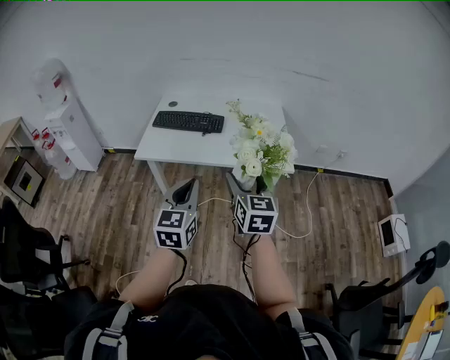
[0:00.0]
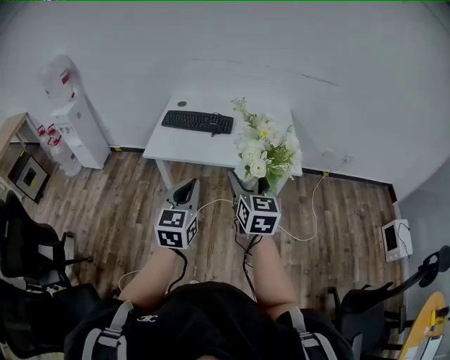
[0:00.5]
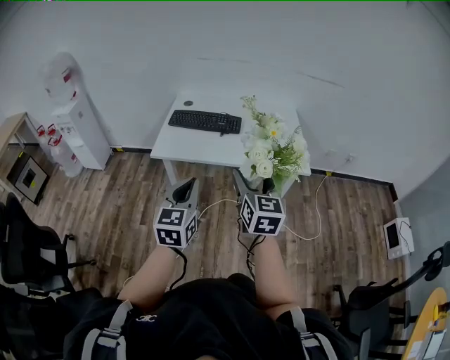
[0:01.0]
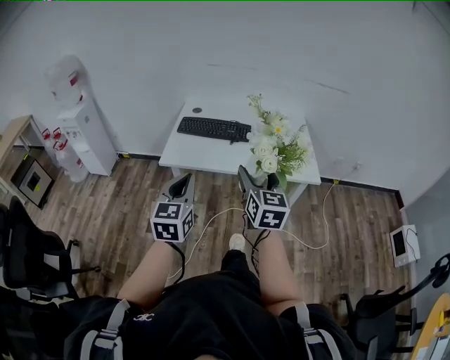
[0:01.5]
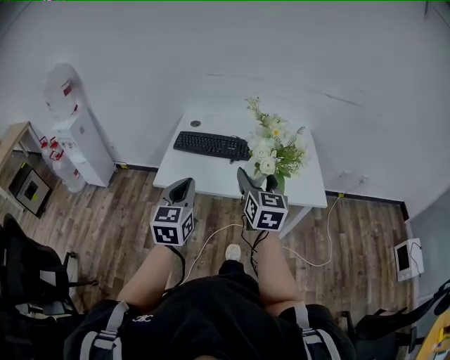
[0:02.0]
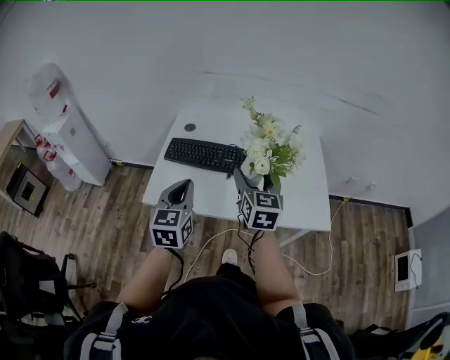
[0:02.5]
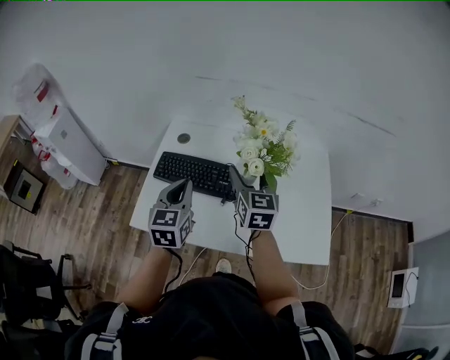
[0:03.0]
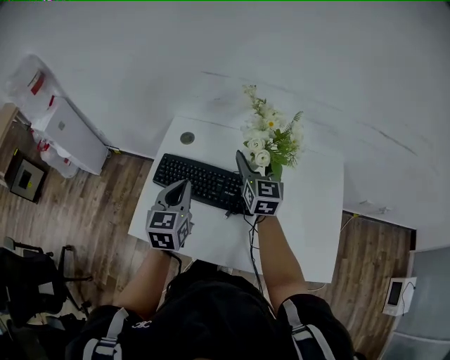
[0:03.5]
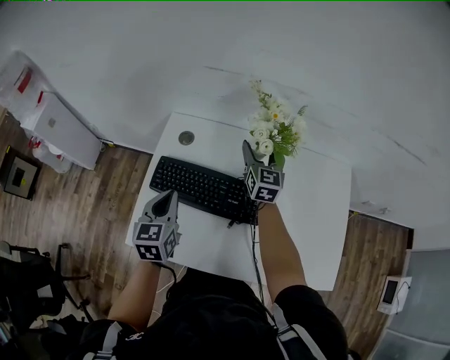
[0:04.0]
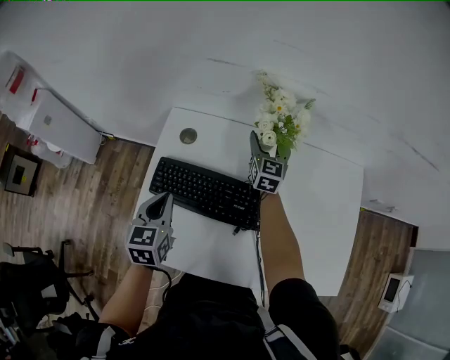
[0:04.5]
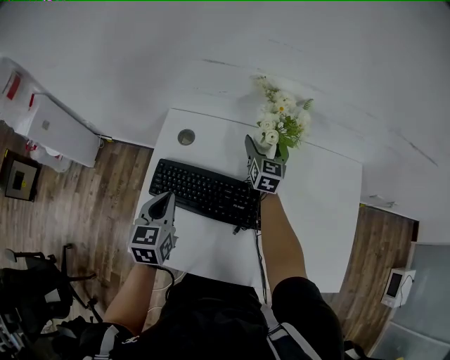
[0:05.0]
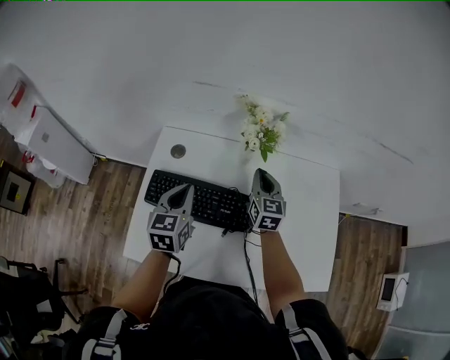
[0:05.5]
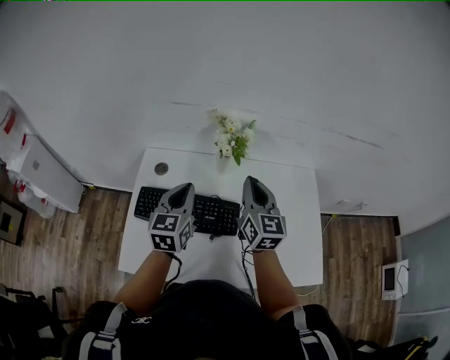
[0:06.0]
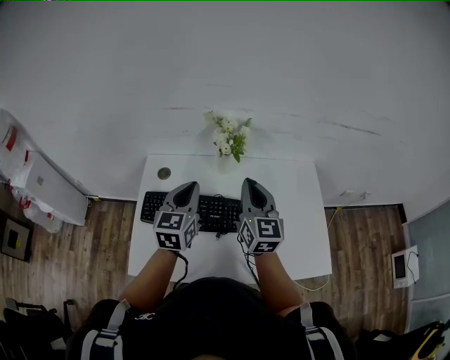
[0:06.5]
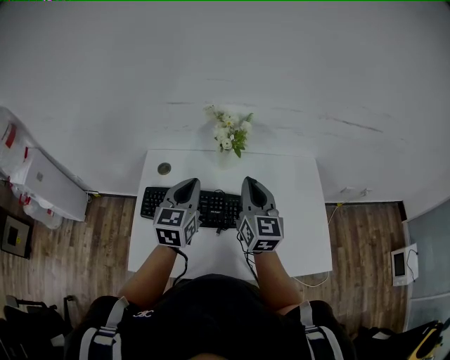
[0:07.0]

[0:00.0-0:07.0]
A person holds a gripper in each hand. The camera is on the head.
0:00.0 to 0:02.0: The two grippers go about 25 cm forward and to the left.
0:02.0 to 0:03.5: The pair of grippers is taken forward, approximately 50 cm.
0:03.5 to 0:05.0: The left gripper heads downward, forward and to the left, covering some 15 cm; the right gripper travels forward and downward by approximately 25 cm.
0:05.0 to 0:07.0: The left gripper is displaced upward and to the right by some 20 cm, and swivels about 20 degrees, while the right gripper shifts some 35 cm backward and upward, and closes.

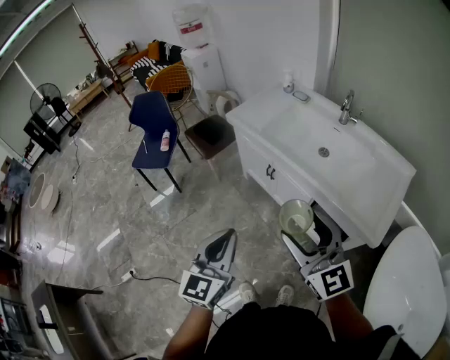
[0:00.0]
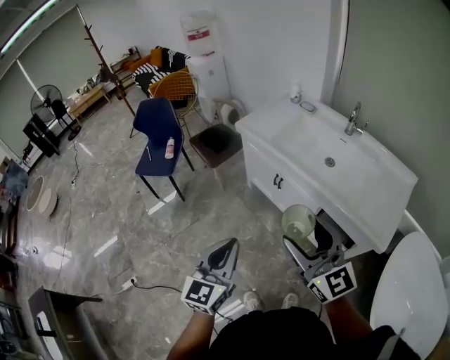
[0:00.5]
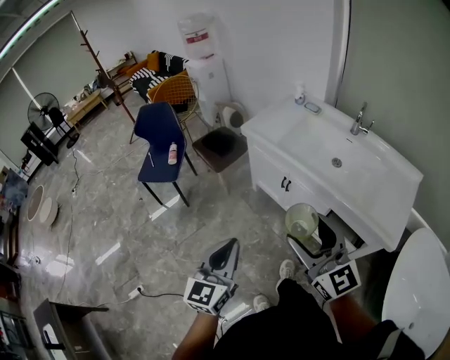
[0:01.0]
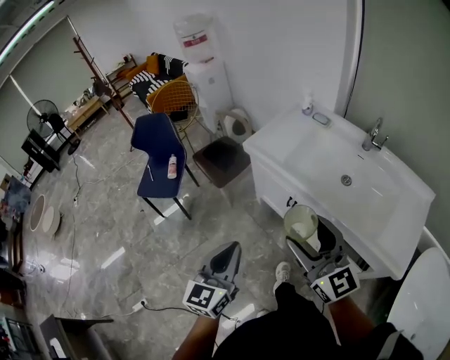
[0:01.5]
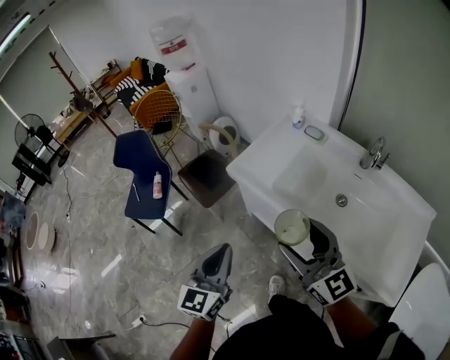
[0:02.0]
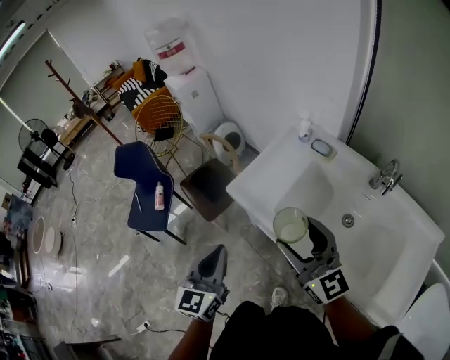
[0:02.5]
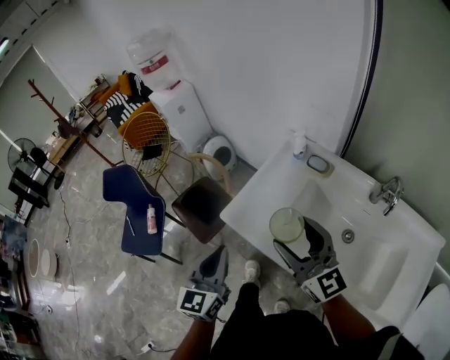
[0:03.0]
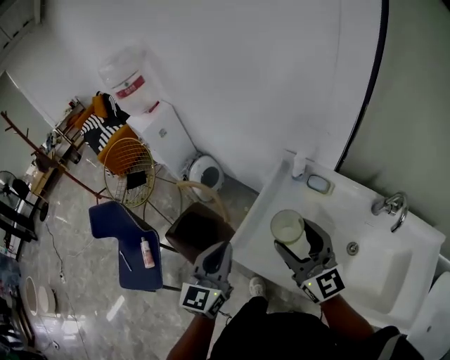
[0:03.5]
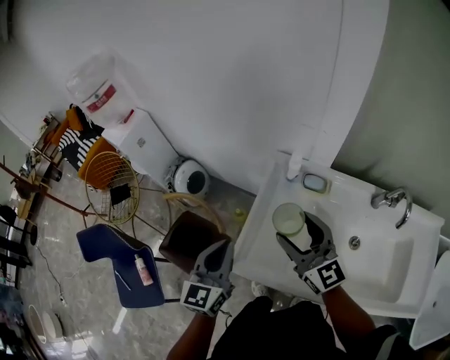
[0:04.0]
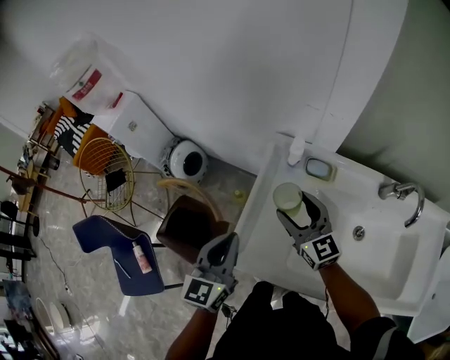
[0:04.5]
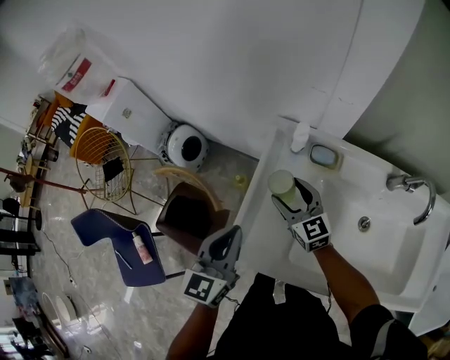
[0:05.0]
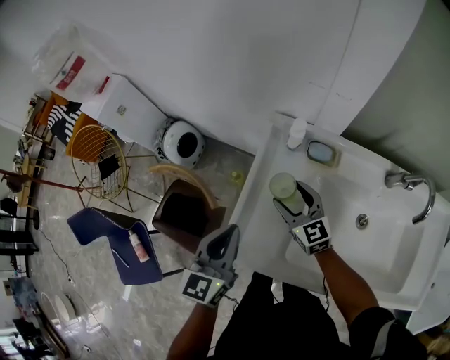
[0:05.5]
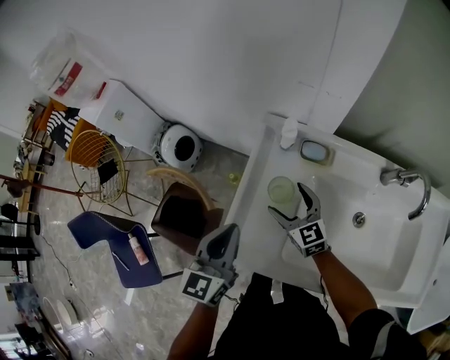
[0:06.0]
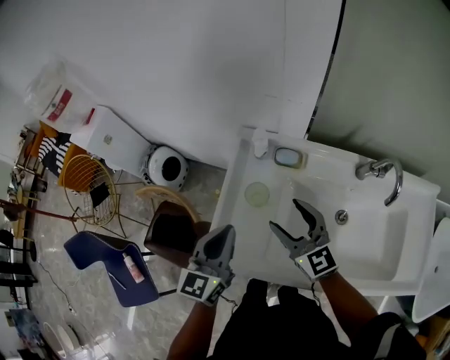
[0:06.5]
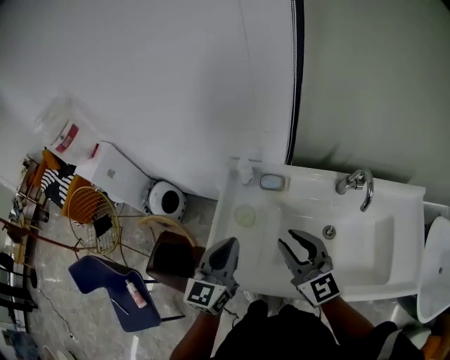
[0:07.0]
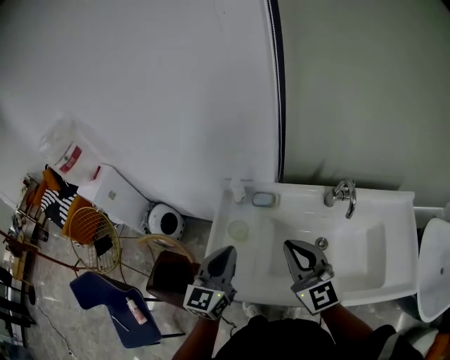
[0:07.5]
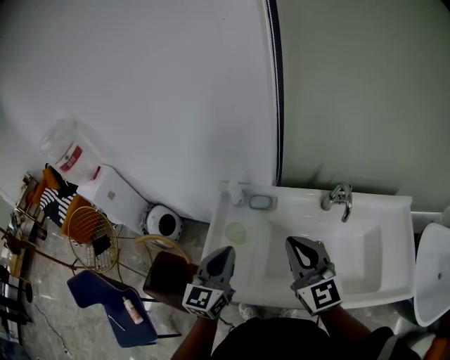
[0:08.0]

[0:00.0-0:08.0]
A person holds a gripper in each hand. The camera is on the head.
0:00.0 to 0:02.0: The grippers both shift forward by approximately 30 cm.
0:02.0 to 0:04.0: The pair of grippers is taken forward, roughly 40 cm. The right gripper turns by some 20 degrees.
0:04.0 to 0:06.0: The right gripper goes roughly 20 cm downward, and turns by about 20 degrees. Meanwhile the left gripper travels to the right and downward by about 10 cm.
0:06.0 to 0:08.0: The right gripper moves upward, to the right and backward, some 35 cm, changes its angle by some 30 degrees, and closes up. The left gripper shifts some 15 cm to the right and upward.

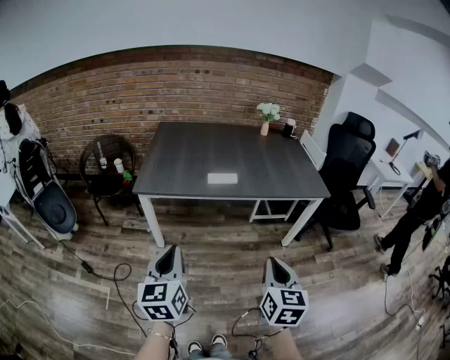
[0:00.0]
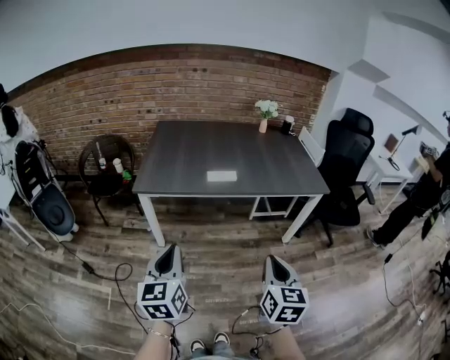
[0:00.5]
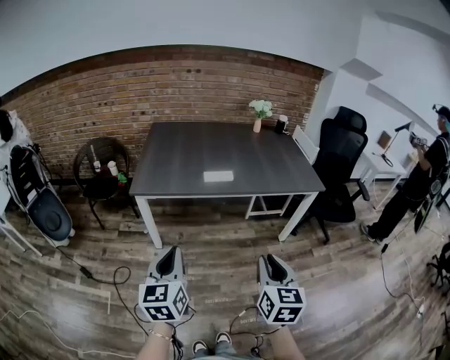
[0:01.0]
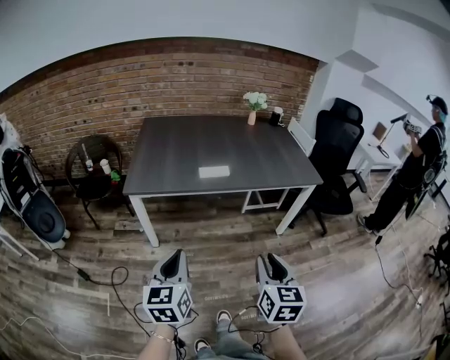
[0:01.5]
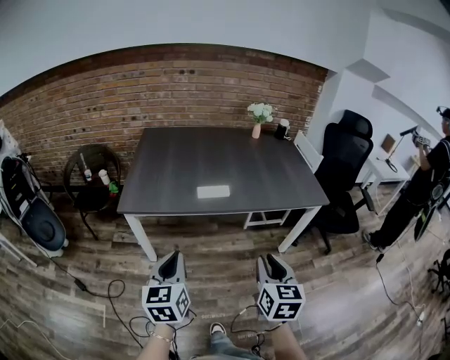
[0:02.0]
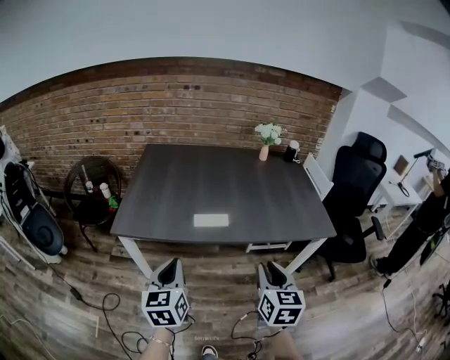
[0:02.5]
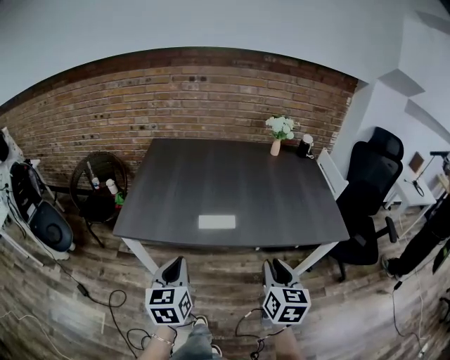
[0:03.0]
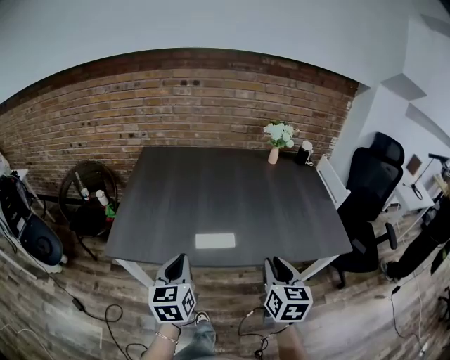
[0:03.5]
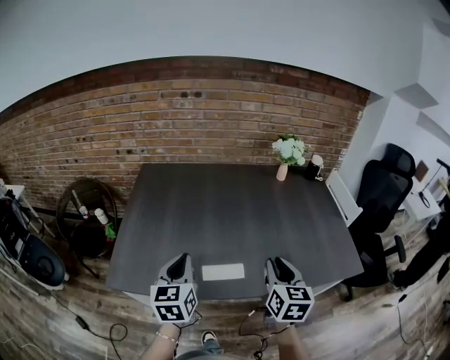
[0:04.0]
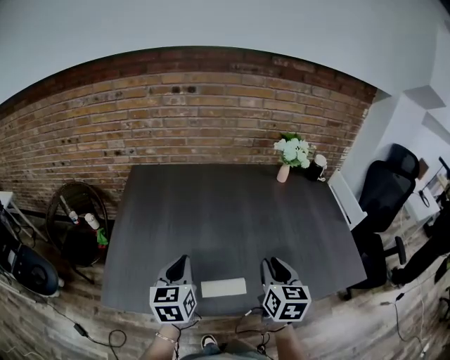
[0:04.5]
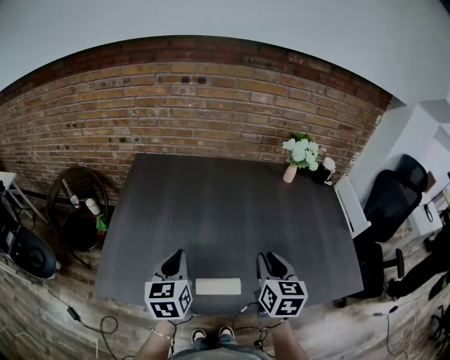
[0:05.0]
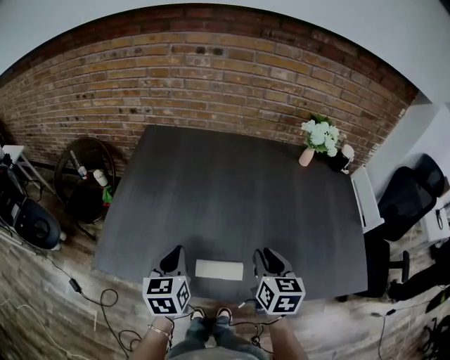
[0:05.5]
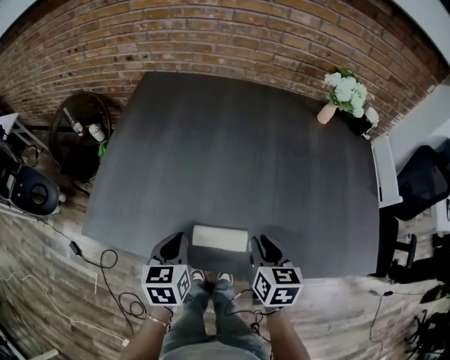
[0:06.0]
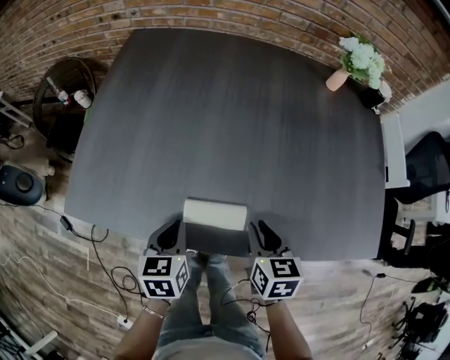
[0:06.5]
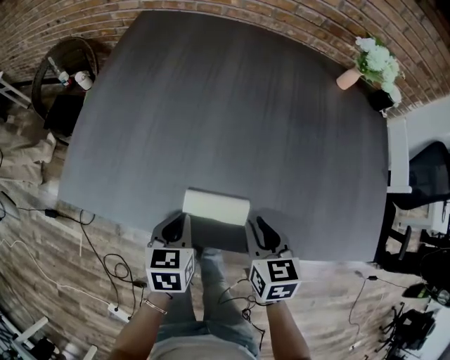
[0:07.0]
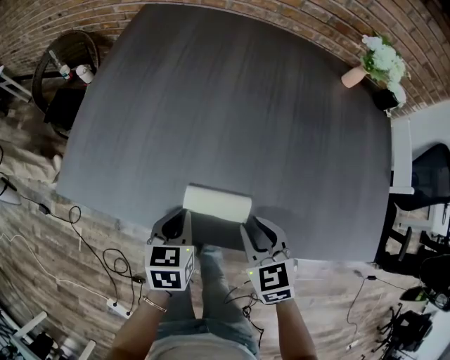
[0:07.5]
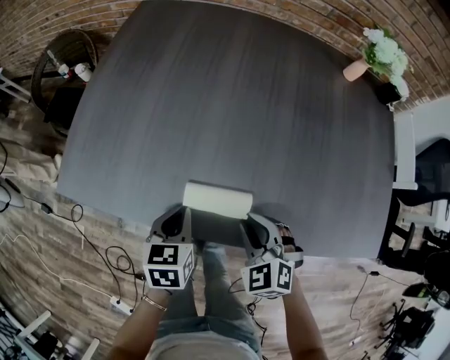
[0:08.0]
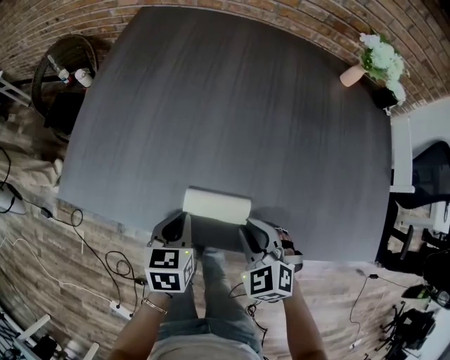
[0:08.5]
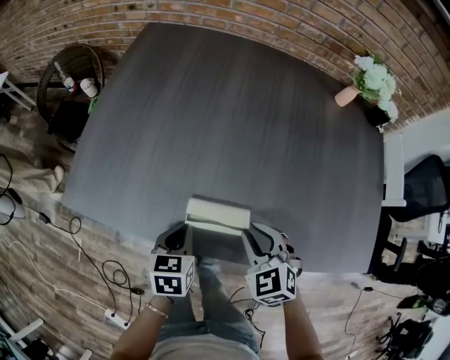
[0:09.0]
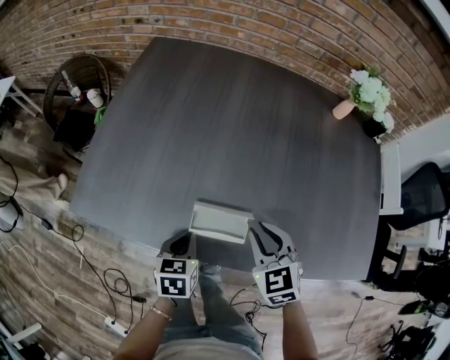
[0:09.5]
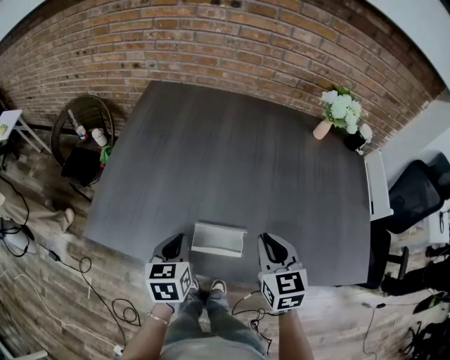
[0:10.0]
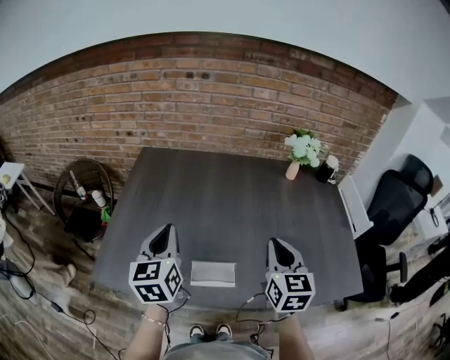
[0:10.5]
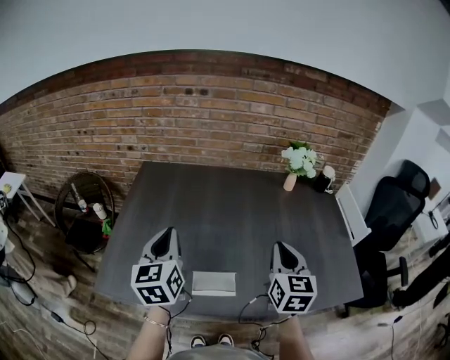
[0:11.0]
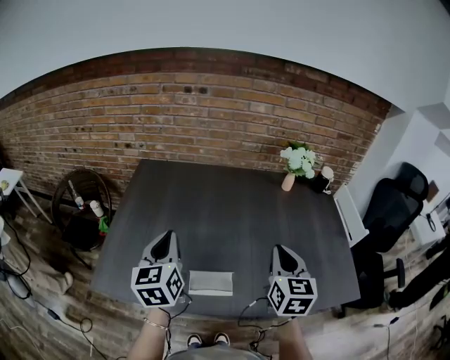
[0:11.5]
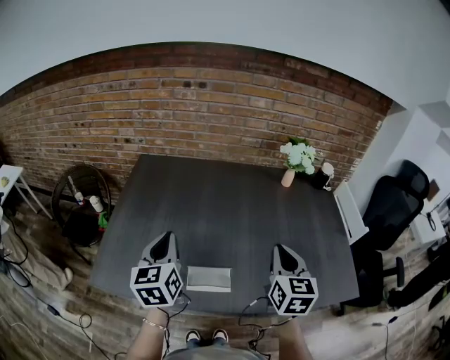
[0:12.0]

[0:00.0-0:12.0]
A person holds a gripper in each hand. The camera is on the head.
0:00.0 to 0:02.0: Both grippers move forward, about 10 cm. The right gripper opens up.
0:02.0 to 0:04.0: The pair of grippers is taken forward, about 40 cm.
0:04.0 to 0:06.0: The right gripper is displaced downward and forward by about 20 cm, and changes its angle by some 30 degrees; the left gripper goes approximately 15 cm downward, and changes its angle by roughly 20 degrees.
0:06.0 to 0:08.0: The grippers both shift downward by some 10 cm. The right gripper twists approximately 60 degrees counterclockwise, seen from behind.
0:08.0 to 0:10.0: The grippers both shift upward by some 10 cm. The right gripper rotates approximately 40 degrees.
0:10.0 to 0:12.0: The left gripper heads upward, covering some 20 cm, and swivels roughly 30 degrees. The right gripper goes roughly 15 cm upward and to the right, and swivels some 30 degrees.
